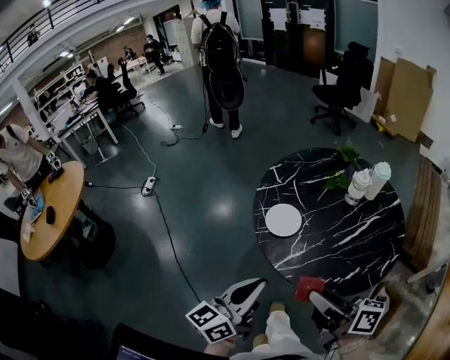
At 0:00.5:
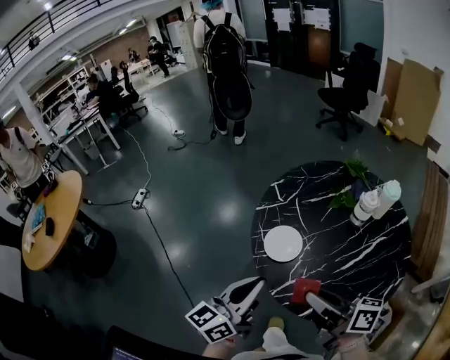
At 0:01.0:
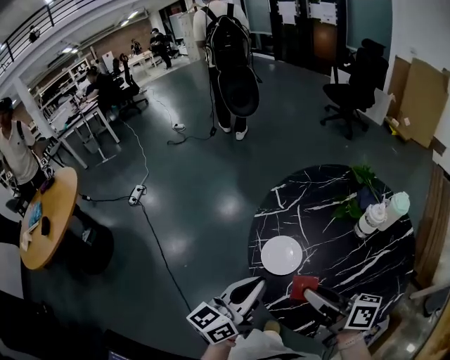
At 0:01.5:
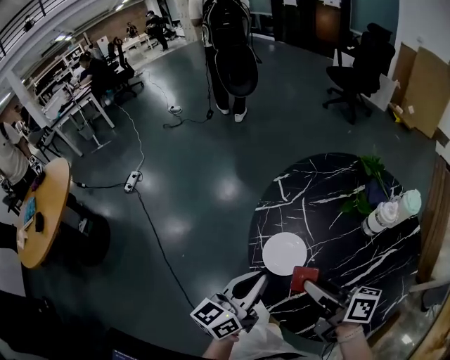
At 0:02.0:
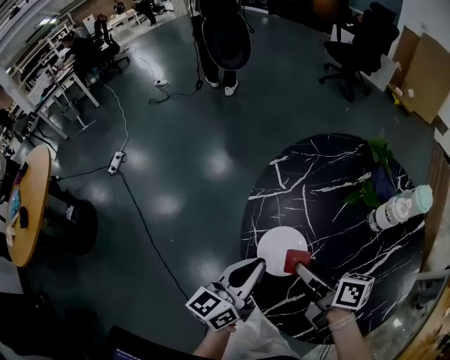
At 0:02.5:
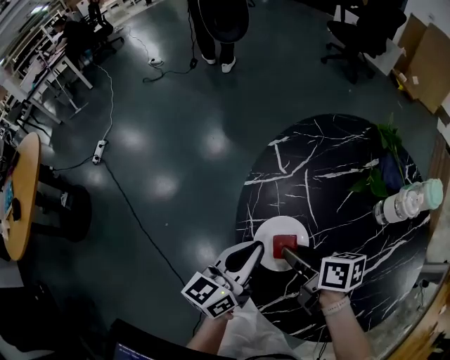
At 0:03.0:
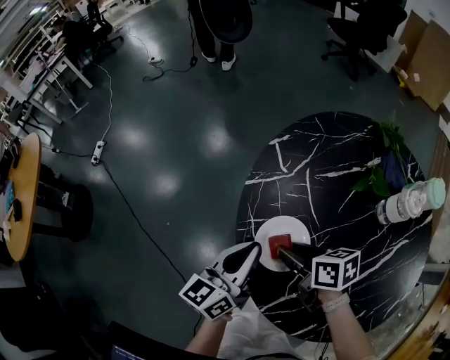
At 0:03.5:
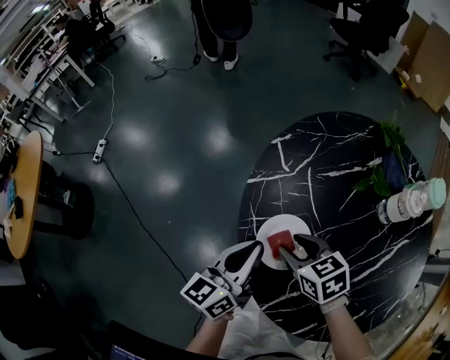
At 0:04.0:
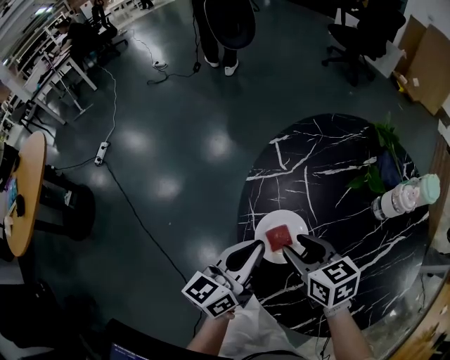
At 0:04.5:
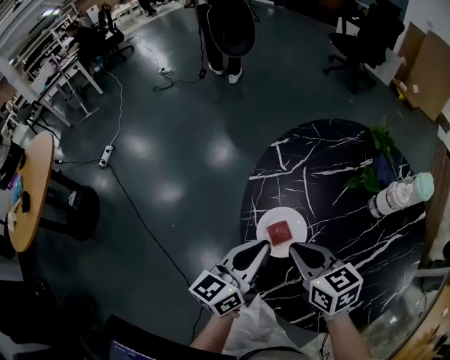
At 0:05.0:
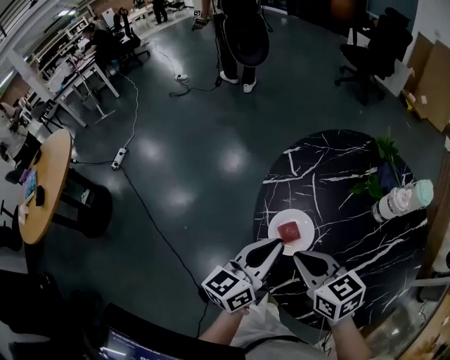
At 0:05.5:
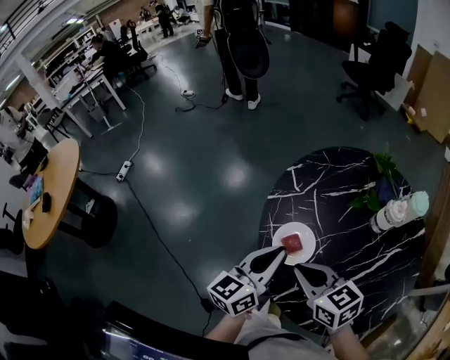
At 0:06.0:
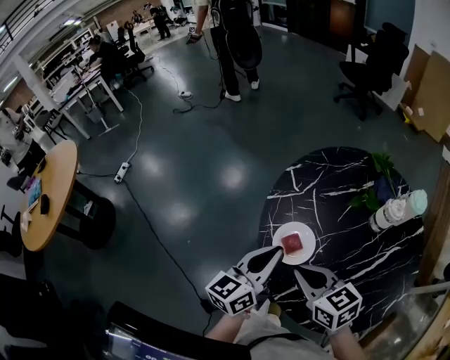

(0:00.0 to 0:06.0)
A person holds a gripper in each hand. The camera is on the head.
0:00.0 - 0:02.0: Both grippers move forward and downward, about 30 cm.
0:02.0 - 0:04.0: The right gripper swivels roughly 40 degrees, and opens up.
0:04.0 - 0:06.0: The left gripper moves upward, some 10 cm. Meanwhile the right gripper moves upward and backward, roughly 15 cm, and closes.

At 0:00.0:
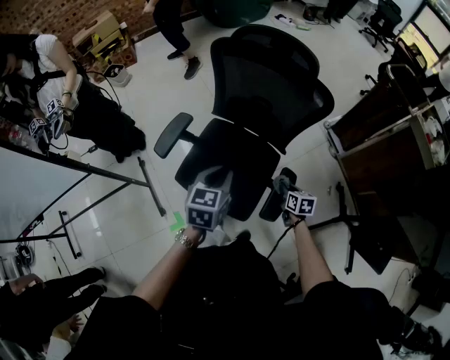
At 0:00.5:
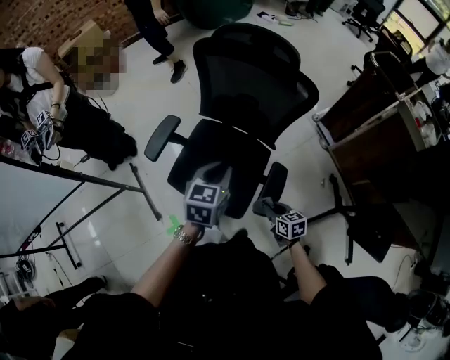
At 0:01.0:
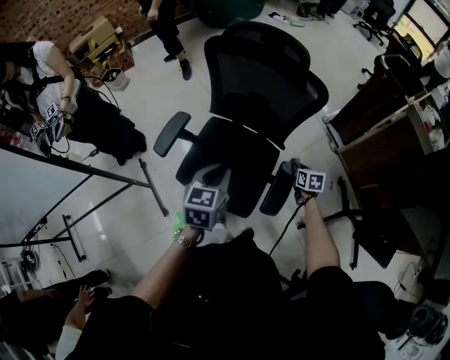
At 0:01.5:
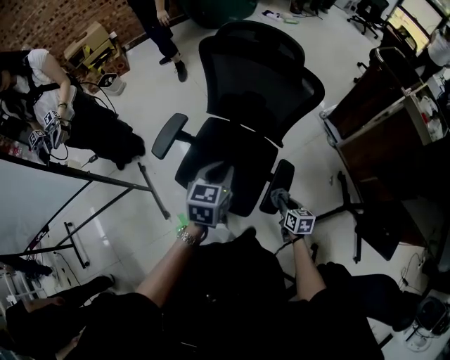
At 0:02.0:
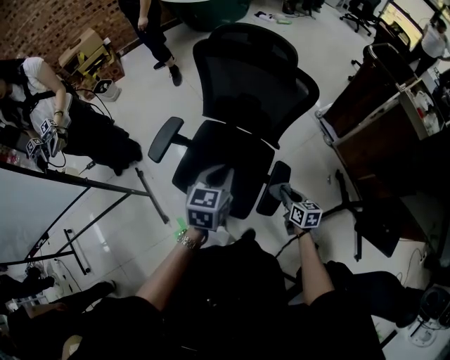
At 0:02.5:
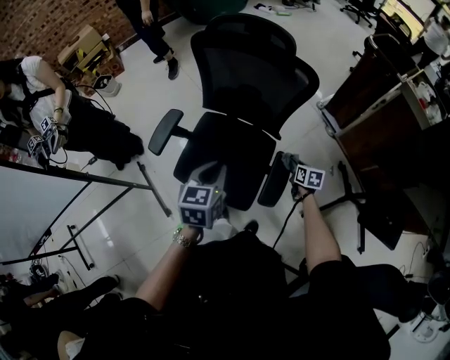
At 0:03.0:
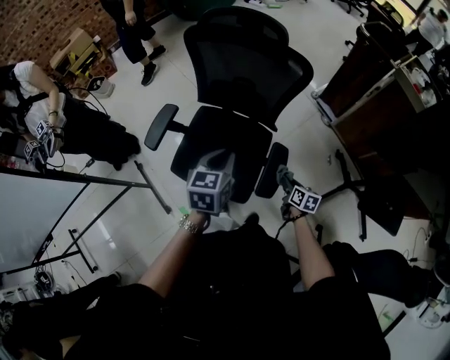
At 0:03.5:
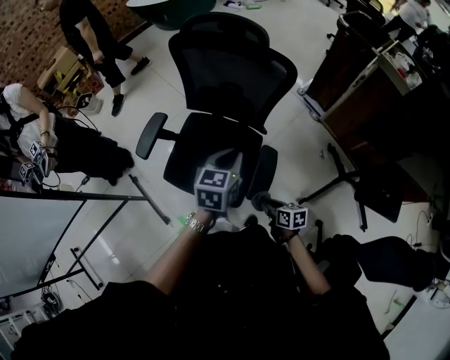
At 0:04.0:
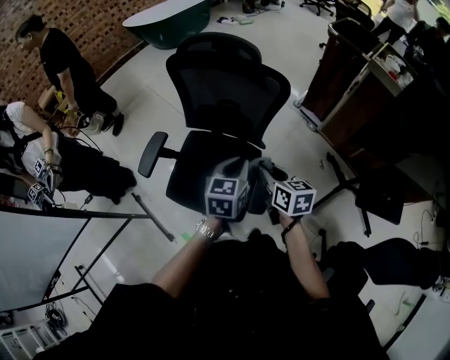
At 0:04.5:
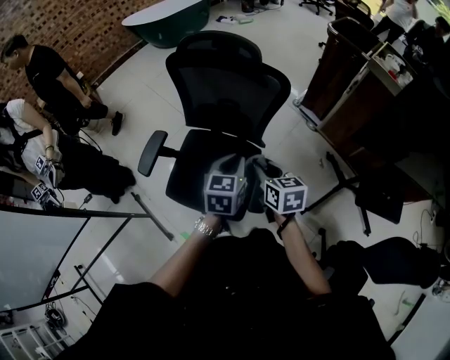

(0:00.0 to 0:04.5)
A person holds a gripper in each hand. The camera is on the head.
0:00.0 - 0:02.0: The right gripper moves forward and backward over some 15 cm, changing direction 2 times.
0:02.0 - 0:04.5: The right gripper moves upward and to the left, roughly 20 cm; the left gripper heads to the right, covering roughly 10 cm.

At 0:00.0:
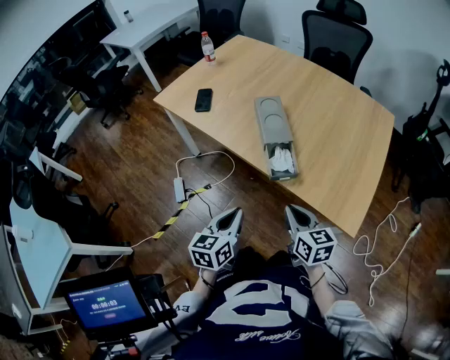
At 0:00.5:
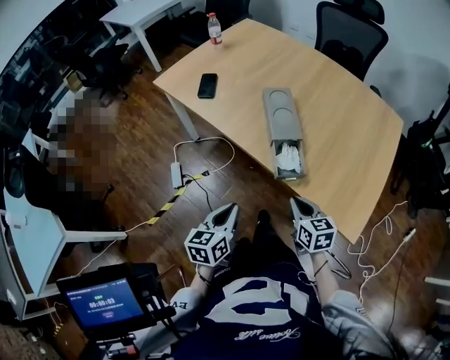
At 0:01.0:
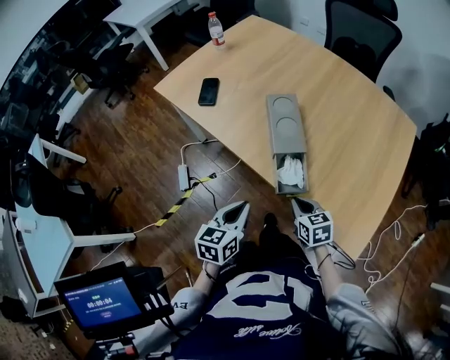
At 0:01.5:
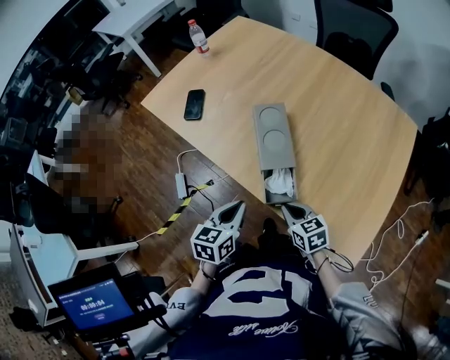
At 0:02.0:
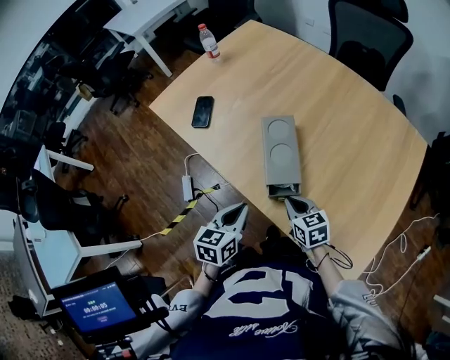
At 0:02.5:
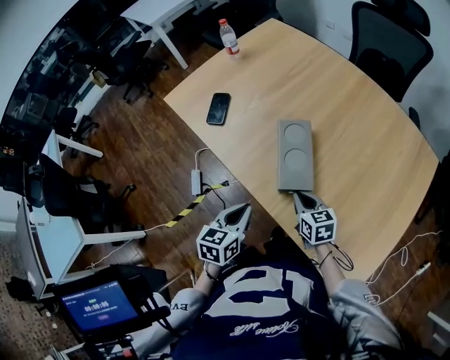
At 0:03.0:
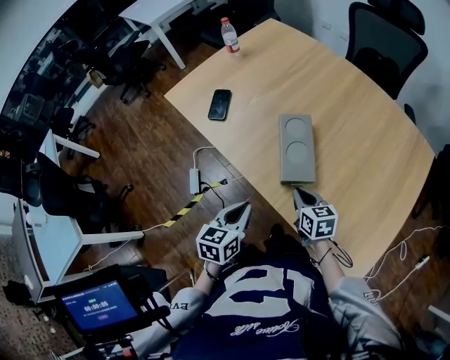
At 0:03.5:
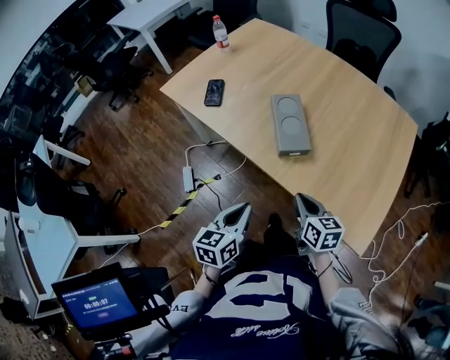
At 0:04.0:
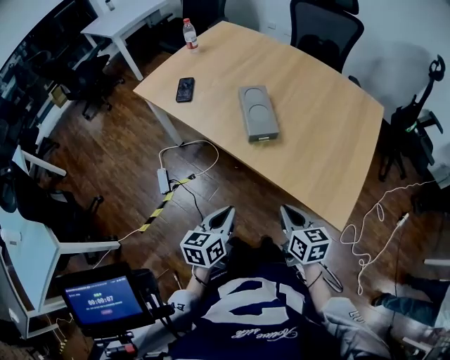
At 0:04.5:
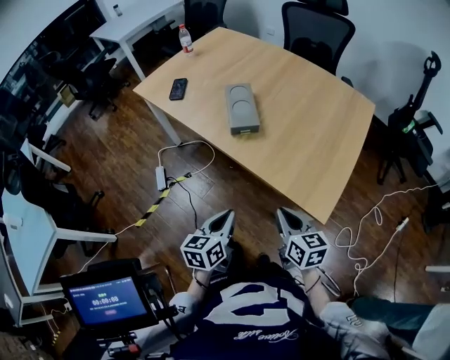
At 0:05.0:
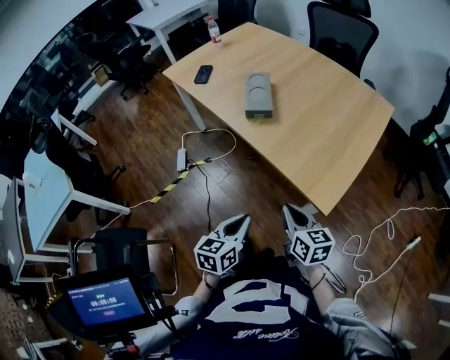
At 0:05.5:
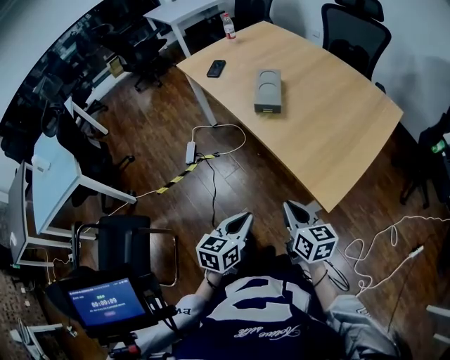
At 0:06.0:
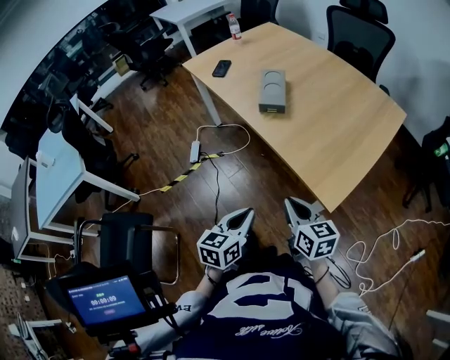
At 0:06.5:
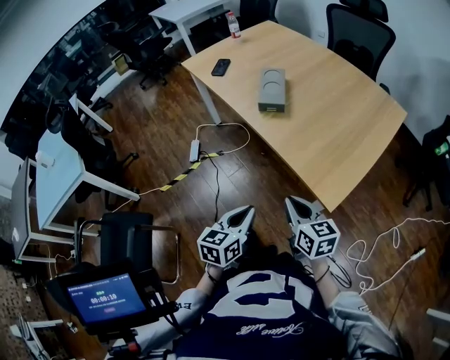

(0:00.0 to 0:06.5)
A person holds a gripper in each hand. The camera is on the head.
0:00.0 - 0:02.0: The right gripper is displaced forward and downward by some 25 cm, and turns by some 20 degrees. The left gripper shifts some 20 cm forward.
0:02.0 - 0:04.5: Both grippers move backward, about 30 cm. The right gripper rotates roughly 20 degrees.
0:04.5 - 0:06.5: The left gripper heads backward and to the right, covering approximately 15 cm. Meanwhile the right gripper goes some 10 cm backward.

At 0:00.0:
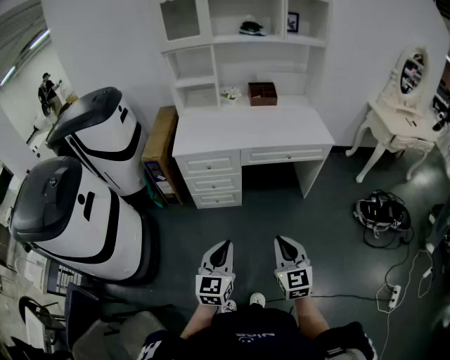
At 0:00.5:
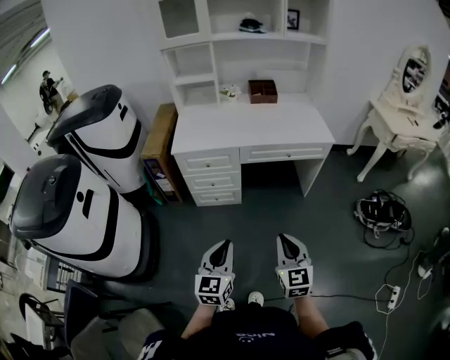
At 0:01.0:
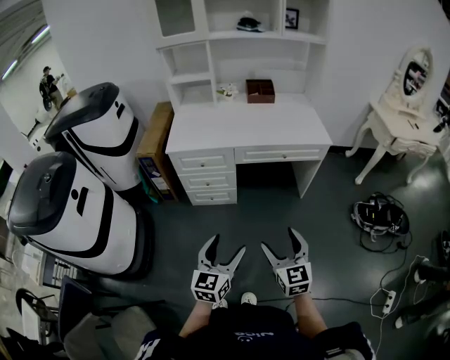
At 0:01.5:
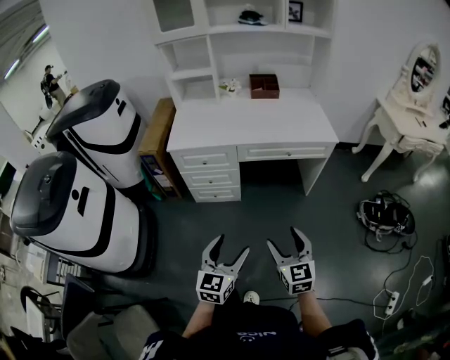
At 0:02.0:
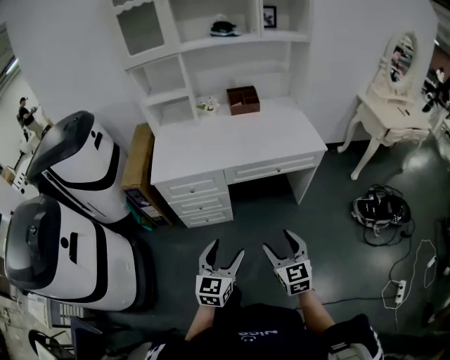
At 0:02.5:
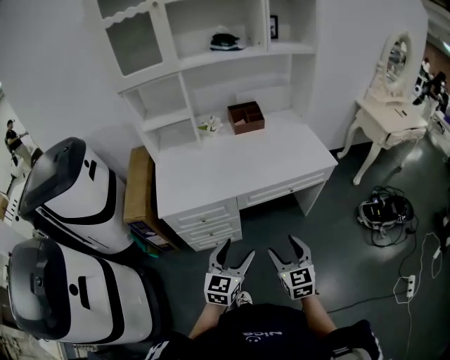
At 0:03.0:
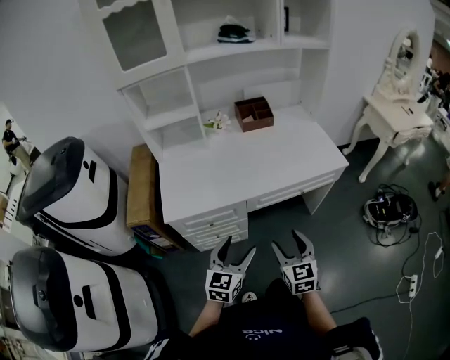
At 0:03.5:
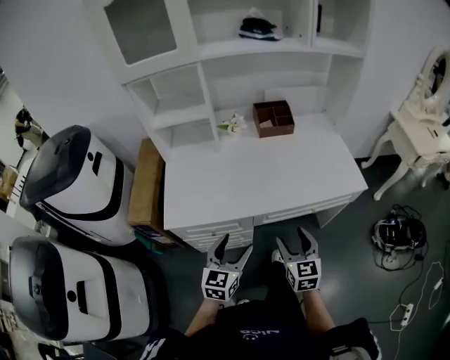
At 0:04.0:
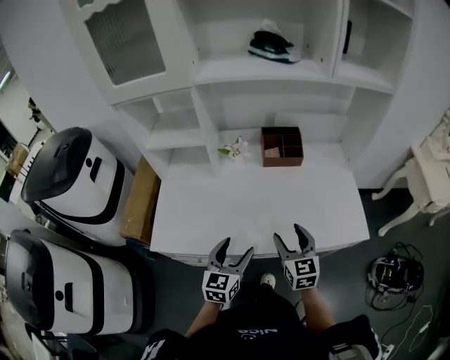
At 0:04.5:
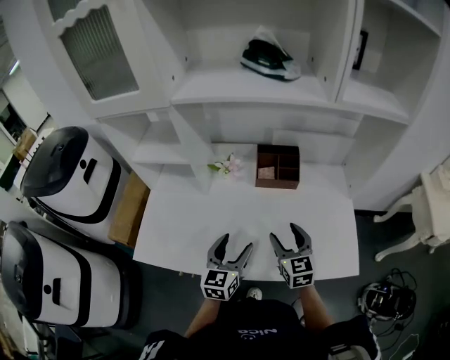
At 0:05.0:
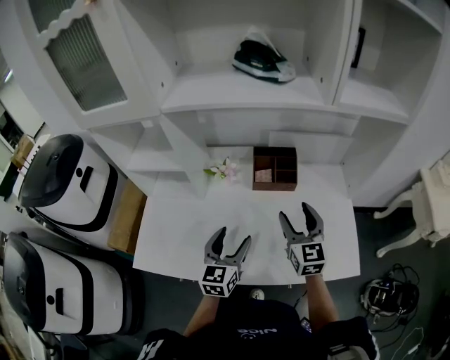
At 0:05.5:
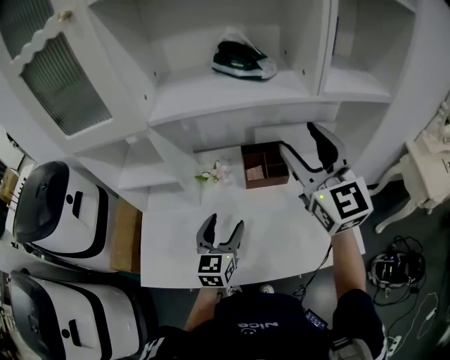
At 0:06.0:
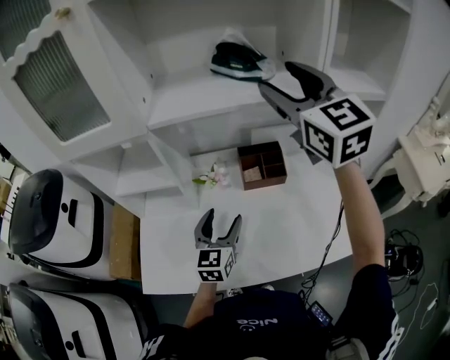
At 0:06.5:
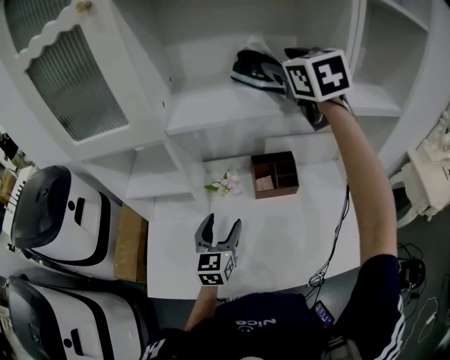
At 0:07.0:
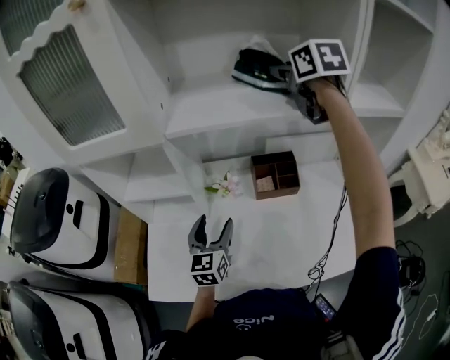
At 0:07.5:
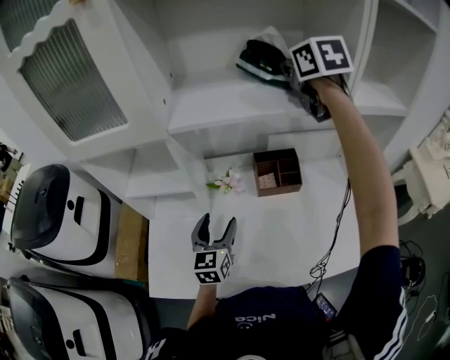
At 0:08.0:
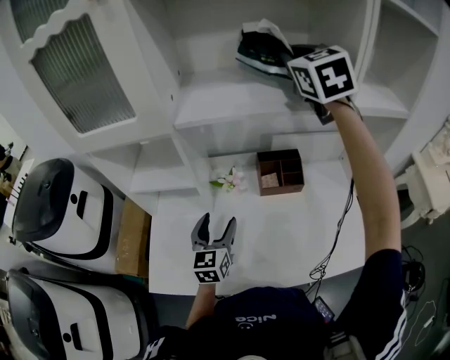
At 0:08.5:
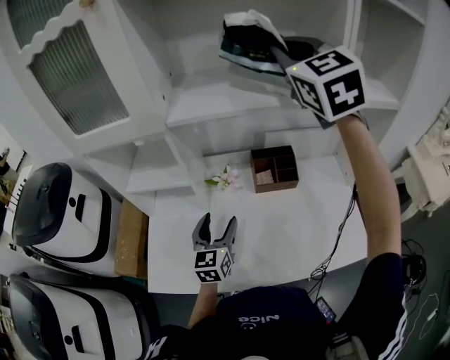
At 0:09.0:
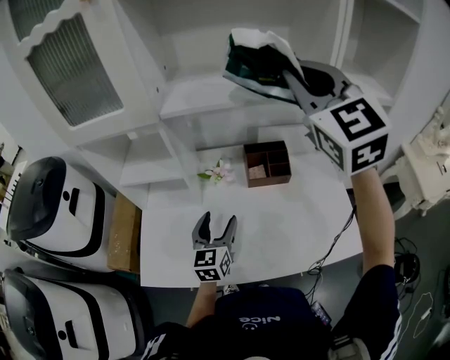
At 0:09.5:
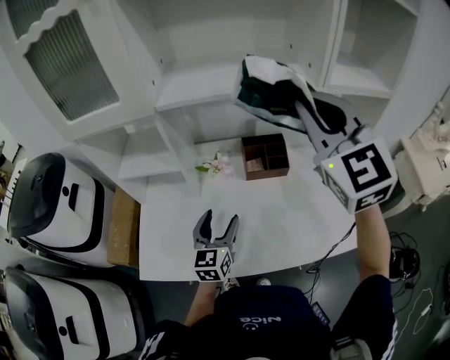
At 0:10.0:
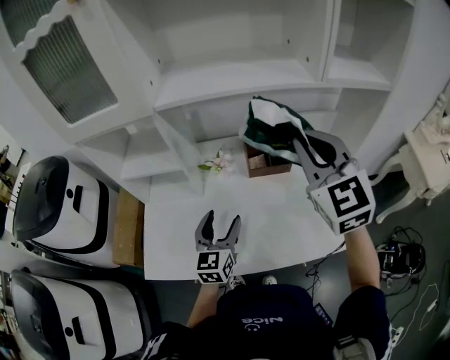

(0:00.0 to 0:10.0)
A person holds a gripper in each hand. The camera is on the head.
0:00.0 - 0:02.0: Both grippers travel together forward, some 15 cm. The right gripper opens up. The left gripper opens.
0:02.0 - 0:04.0: The pair of grippers is taken forward, roughly 50 cm.
0:04.0 - 0:06.0: The right gripper goes about 50 cm upward and forward, and rotates approximately 30 degrees; the left gripper heads forward and upward, covering approximately 25 cm.
0:06.0 - 0:08.0: The left gripper goes some 5 cm to the left; the right gripper goes about 10 cm forward, and closes its fingers.
0:08.0 - 0:10.0: The left gripper is displaced backward by approximately 5 cm; the right gripper shifts roughly 25 cm backward and downward.
